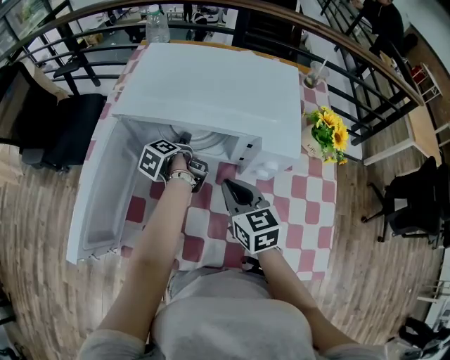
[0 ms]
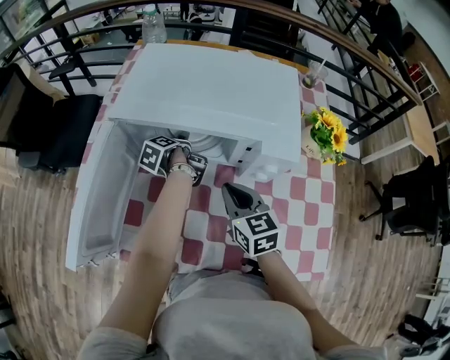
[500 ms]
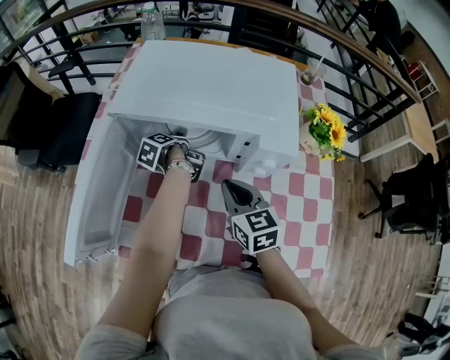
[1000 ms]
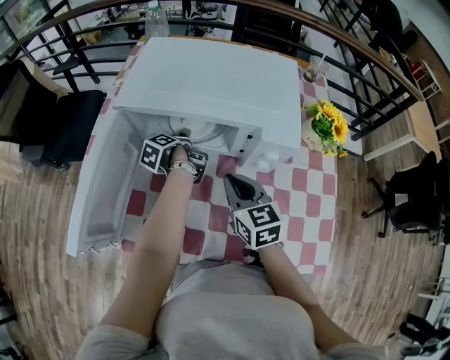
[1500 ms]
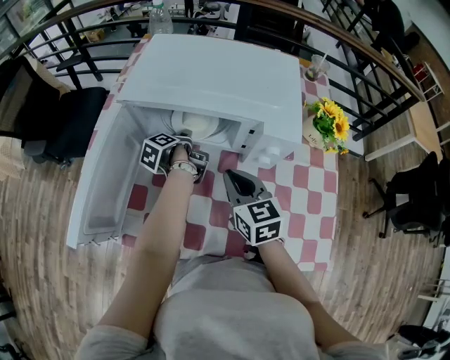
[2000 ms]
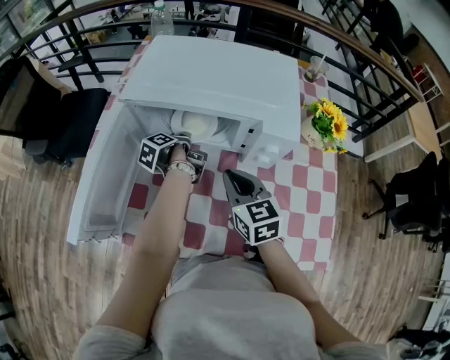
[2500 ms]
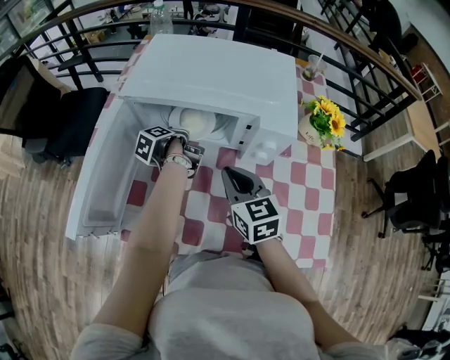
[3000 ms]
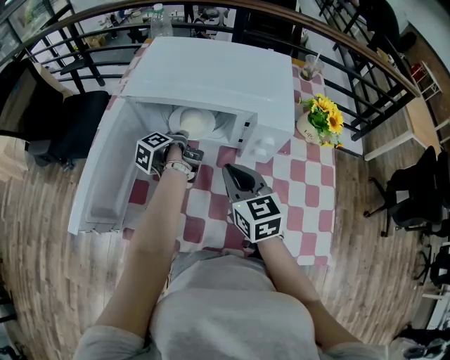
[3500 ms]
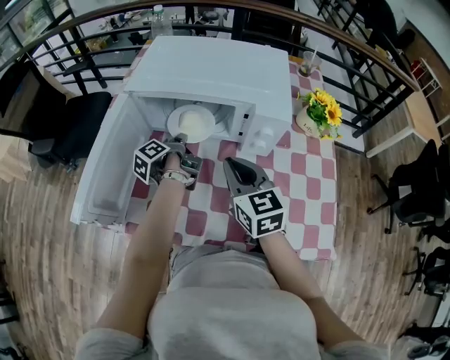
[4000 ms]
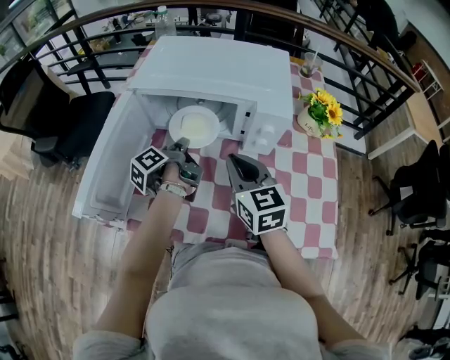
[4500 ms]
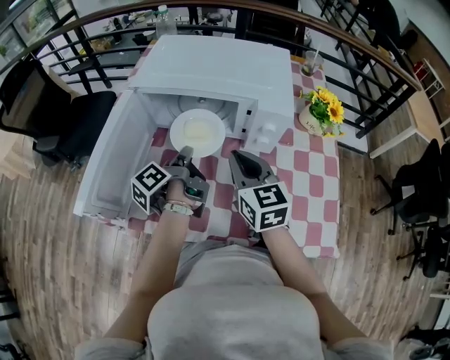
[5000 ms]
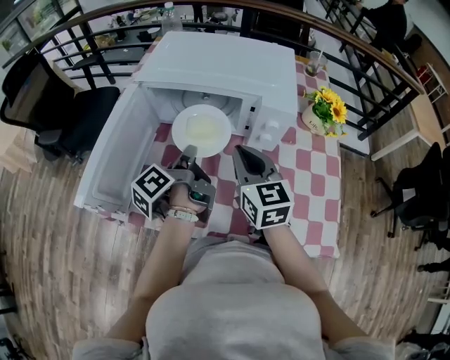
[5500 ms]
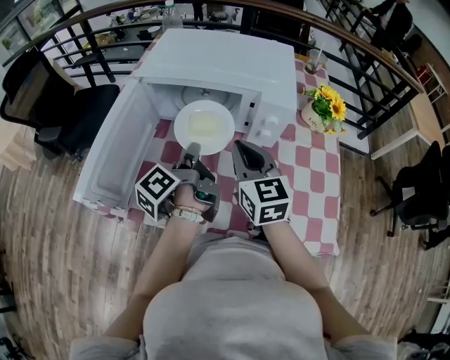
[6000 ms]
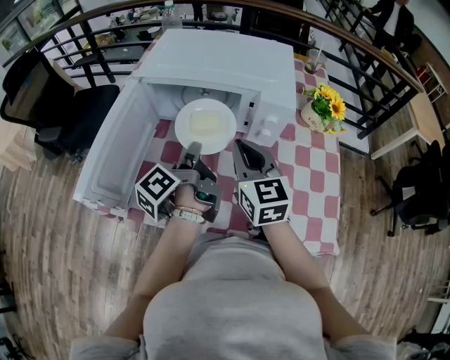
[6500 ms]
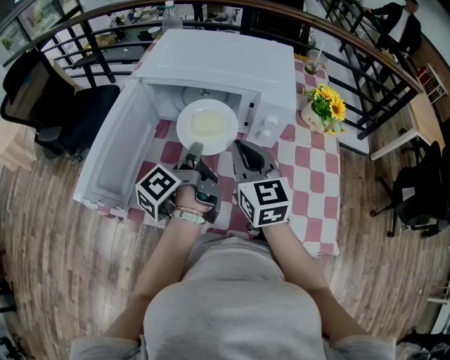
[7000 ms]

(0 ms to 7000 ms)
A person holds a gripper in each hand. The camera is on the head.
0 ms - 2000 ms: The left gripper closes up.
2000 ms - 3500 ms: The left gripper closes up.
3500 ms - 5000 ms: The left gripper moves backward and upward, roughly 15 cm.
5000 ms - 7000 ms: The left gripper ends up about 5 cm from where it was.

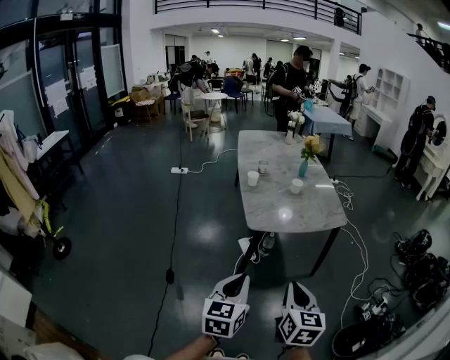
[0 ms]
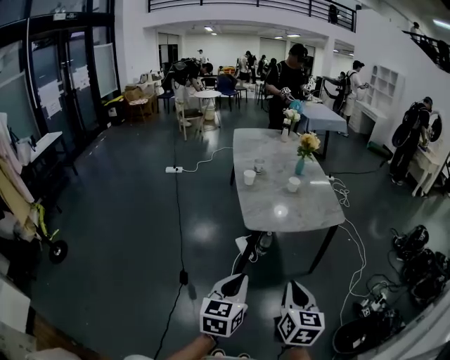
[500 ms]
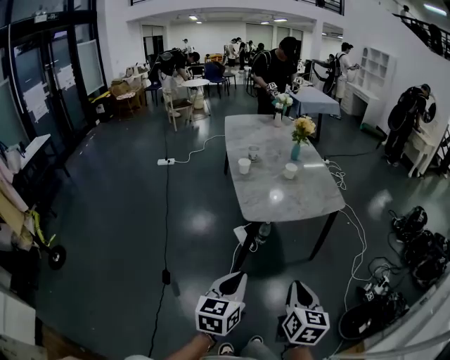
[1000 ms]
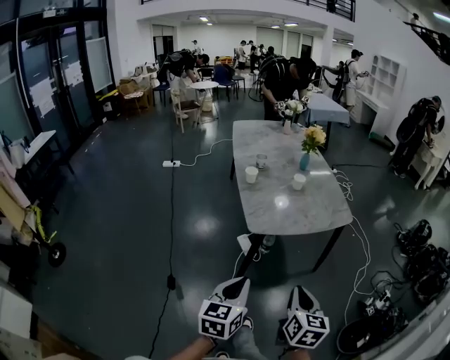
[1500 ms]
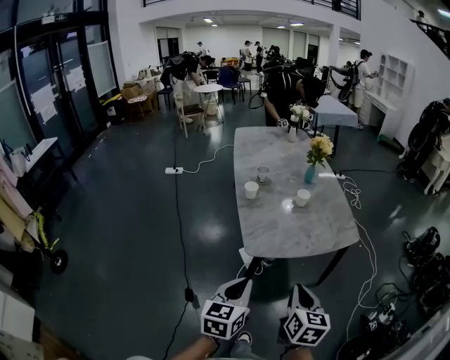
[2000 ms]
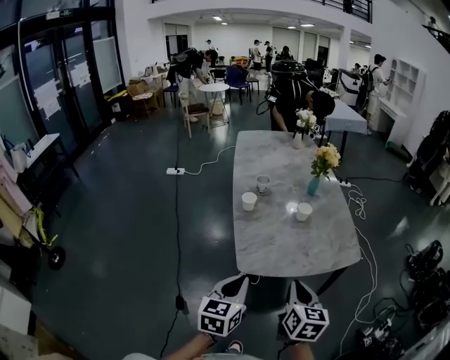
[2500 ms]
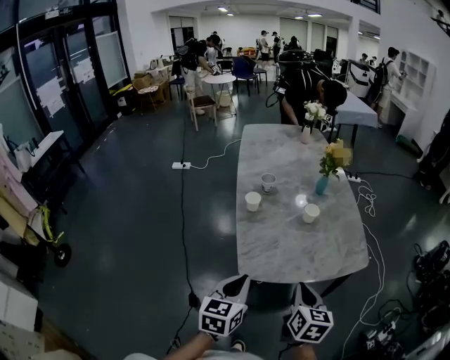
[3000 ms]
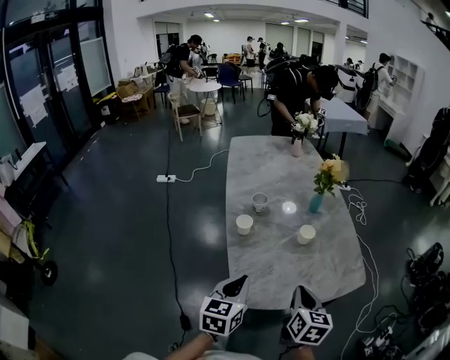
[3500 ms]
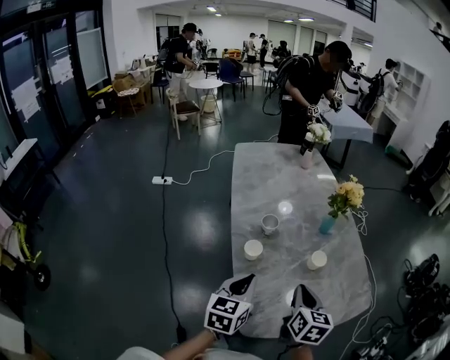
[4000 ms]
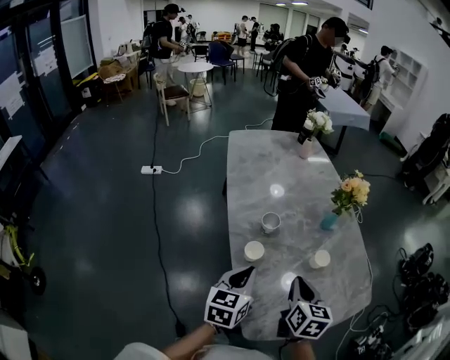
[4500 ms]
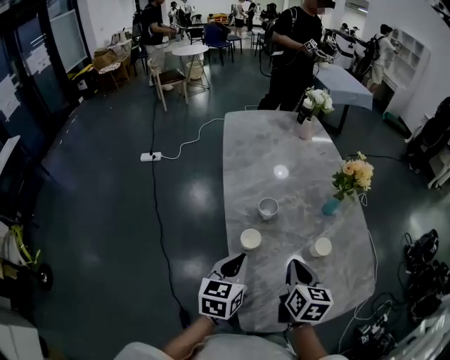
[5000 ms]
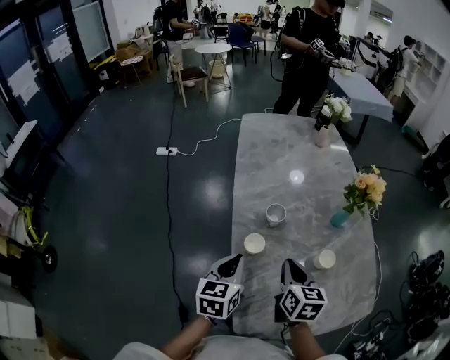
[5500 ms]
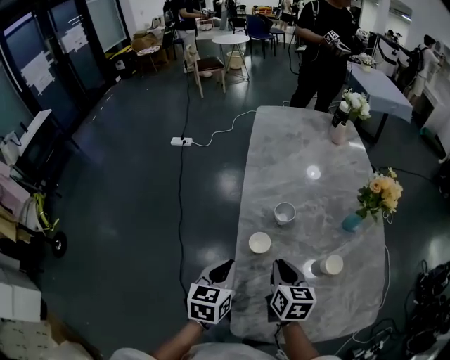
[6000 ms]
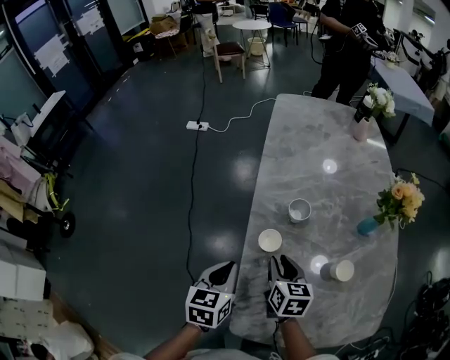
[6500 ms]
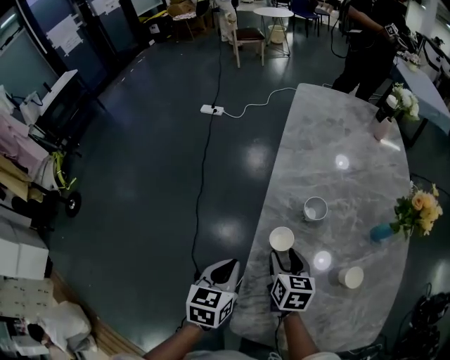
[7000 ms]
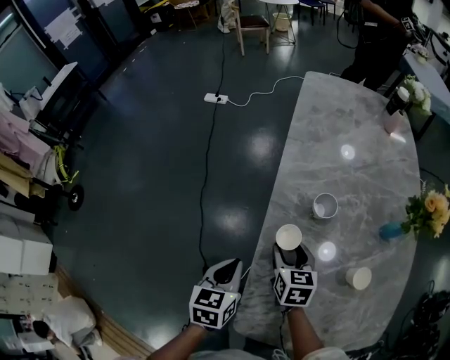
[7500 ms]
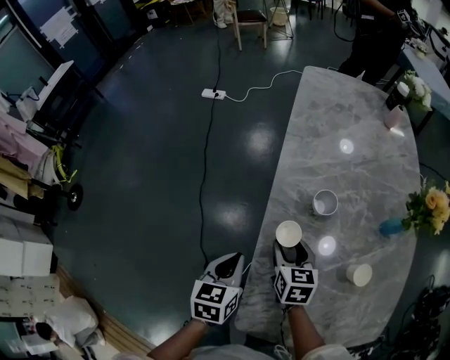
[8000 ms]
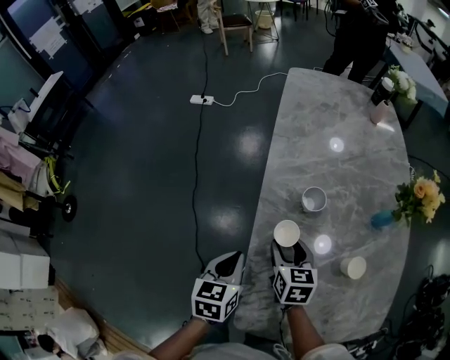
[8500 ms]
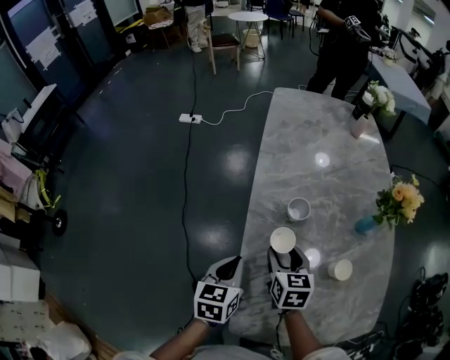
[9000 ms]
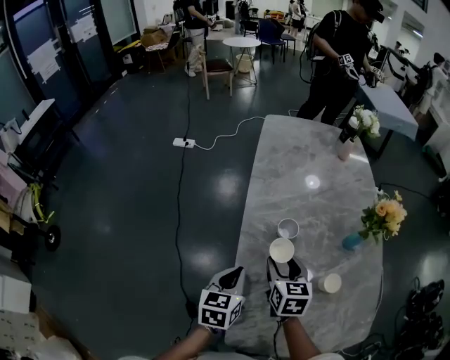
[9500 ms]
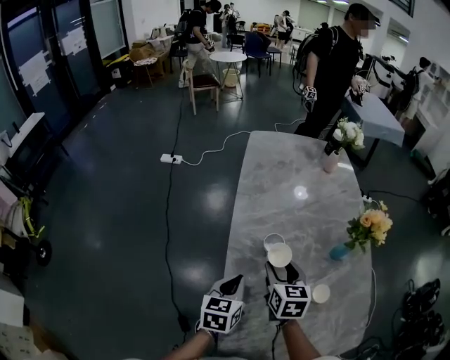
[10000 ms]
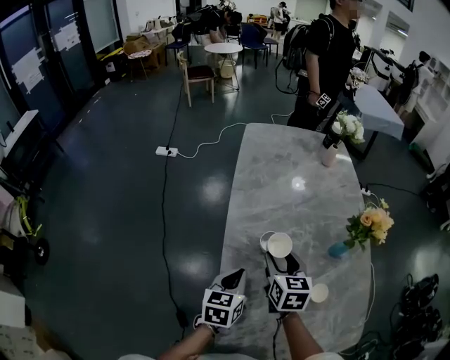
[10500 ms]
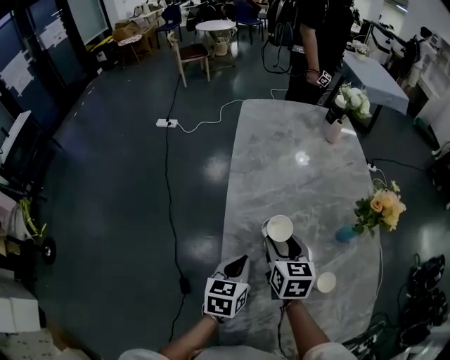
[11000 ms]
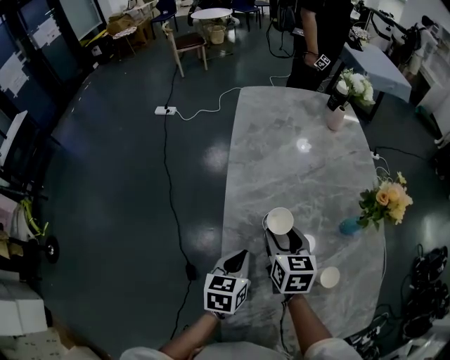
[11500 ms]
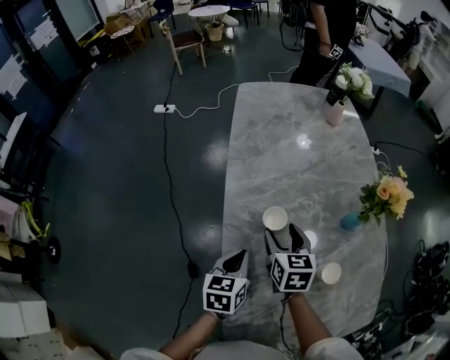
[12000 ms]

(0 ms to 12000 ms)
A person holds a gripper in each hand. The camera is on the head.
0 ms - 2000 ms: The grippers both shift forward by roughly 20 cm.
2000 ms - 4000 ms: The two grippers go about 35 cm forward.
4000 ms - 6000 ms: The right gripper shifts approximately 15 cm forward, to the left and downward, and rotates roughly 20 degrees. The left gripper heads downward, to the left and forward, covering some 10 cm, and swivels roughly 20 degrees.
6000 ms - 8000 ms: The right gripper travels downward, forward and to the left by about 10 cm, and opens up, while the left gripper heads downward, covering about 5 cm.
8000 ms - 10000 ms: The left gripper travels to the right, forward and upward by roughly 10 cm. Meanwhile the right gripper goes roughly 15 cm upward and to the right.
10000 ms - 12000 ms: The left gripper moves roughly 5 cm. Meanwhile the right gripper shifts some 5 cm forward.

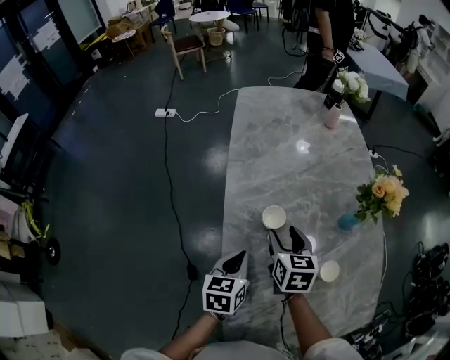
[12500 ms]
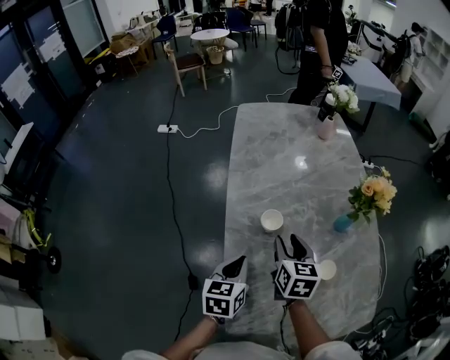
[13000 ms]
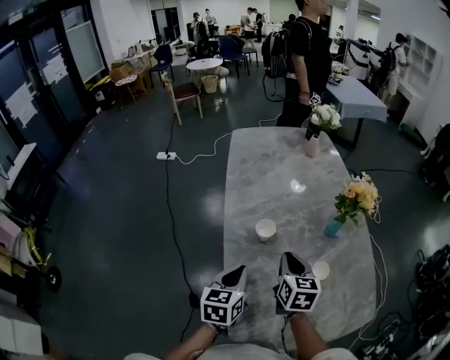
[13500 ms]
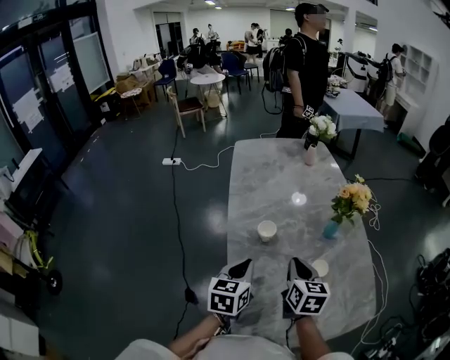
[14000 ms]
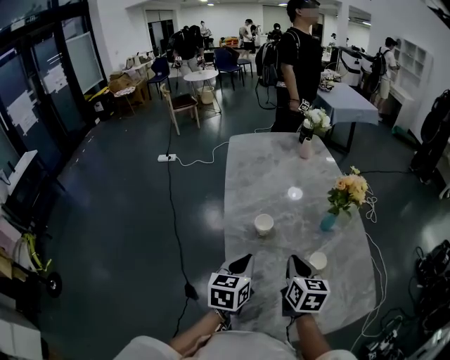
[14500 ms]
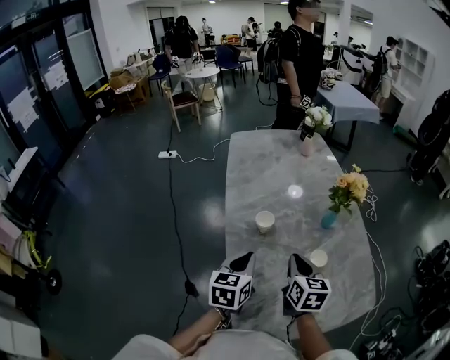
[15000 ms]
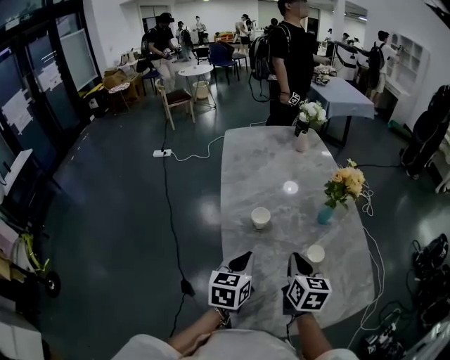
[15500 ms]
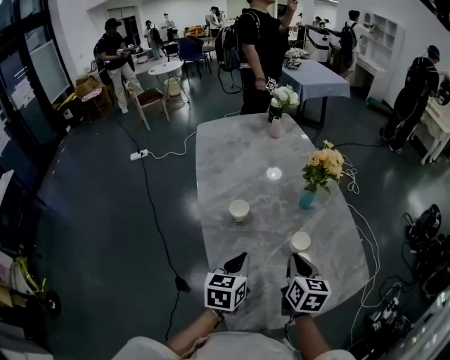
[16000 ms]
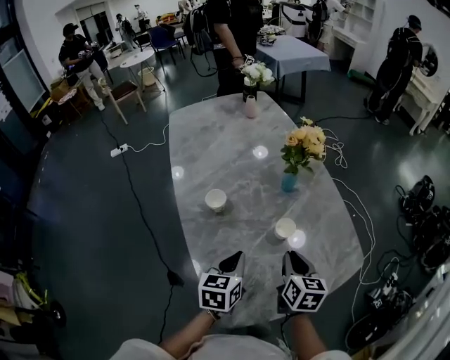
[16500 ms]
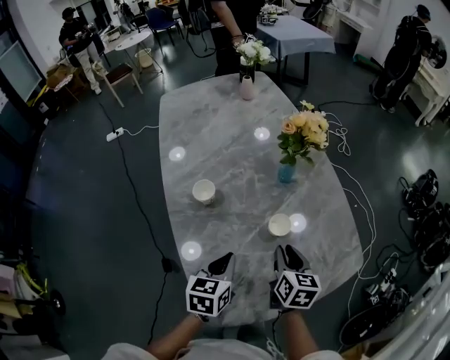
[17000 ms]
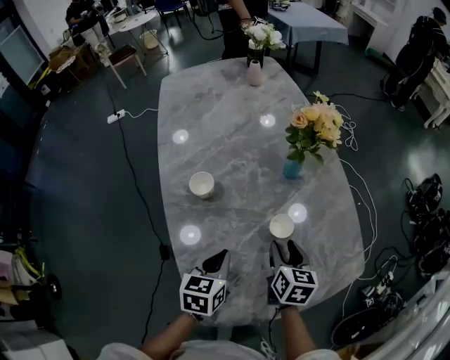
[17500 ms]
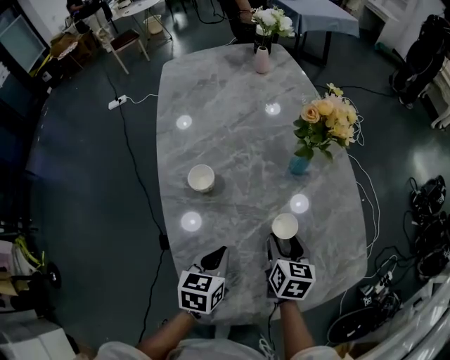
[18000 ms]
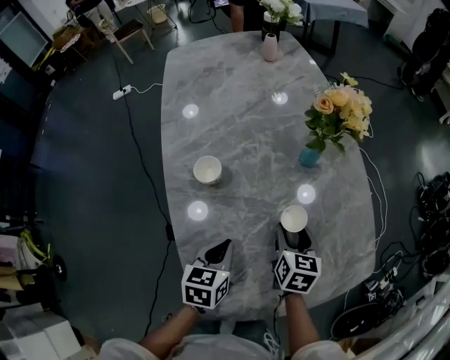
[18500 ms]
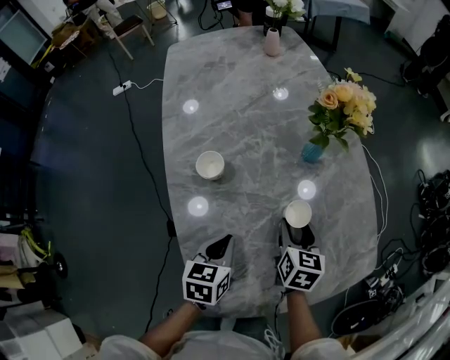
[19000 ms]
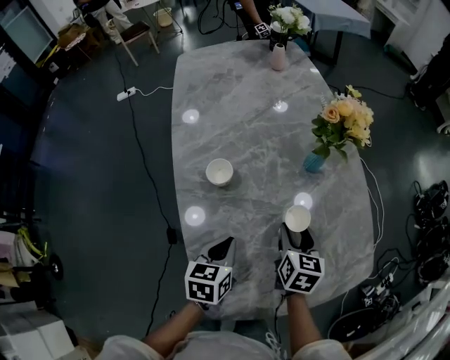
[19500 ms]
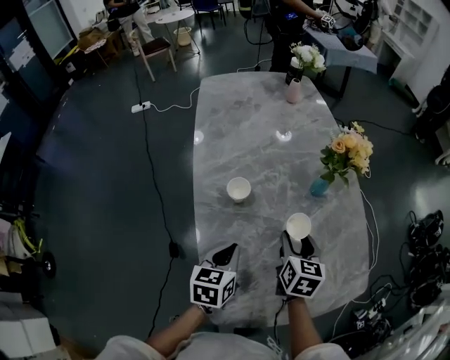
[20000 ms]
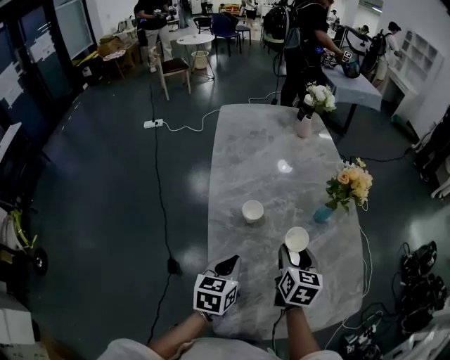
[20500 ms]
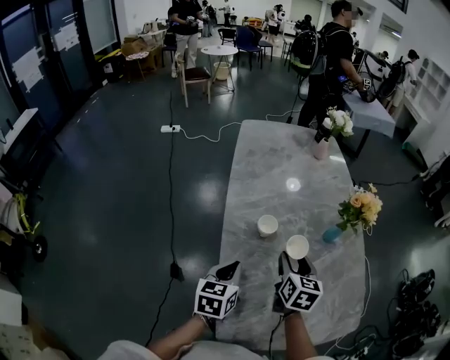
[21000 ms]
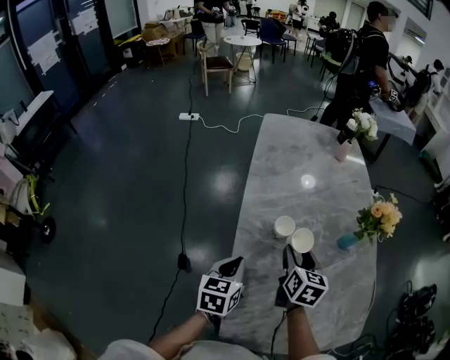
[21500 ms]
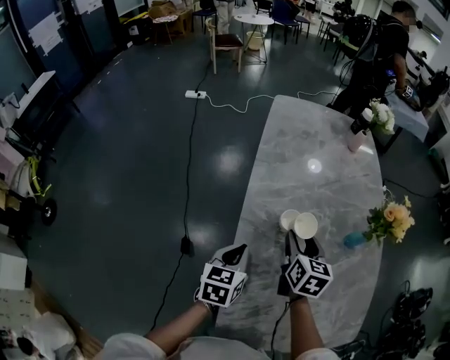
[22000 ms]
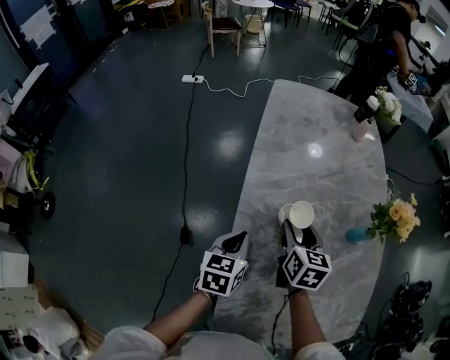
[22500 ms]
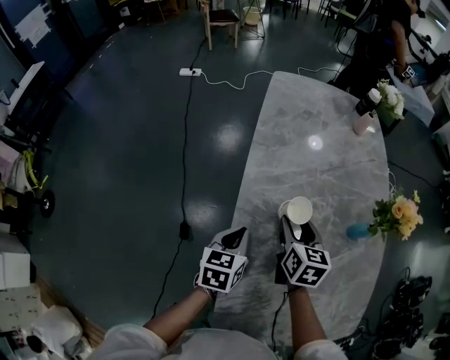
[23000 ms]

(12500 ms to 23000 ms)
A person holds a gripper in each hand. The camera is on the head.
12500 ms - 14500 ms: The left gripper travels upward and backward by some 10 cm; the right gripper travels backward, to the right and upward by about 15 cm, and closes.
14500 ms - 16500 ms: Both grippers travel together to the right and downward, roughly 15 cm.
16500 ms - 19000 ms: The right gripper moves downward and forward, approximately 15 cm, and opens its fingers, while the left gripper shifts some 10 cm downward.
19000 ms - 21000 ms: The two grippers go approximately 15 cm to the left and upward.
21000 ms - 23000 ms: The left gripper goes about 10 cm forward and downward; the right gripper goes roughly 10 cm forward and to the left.
